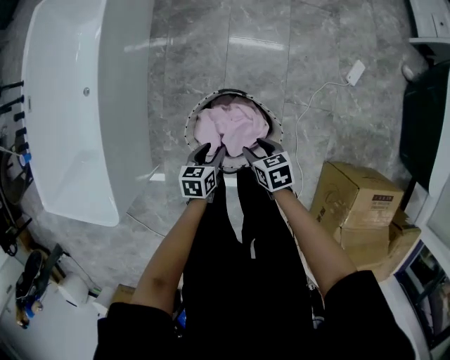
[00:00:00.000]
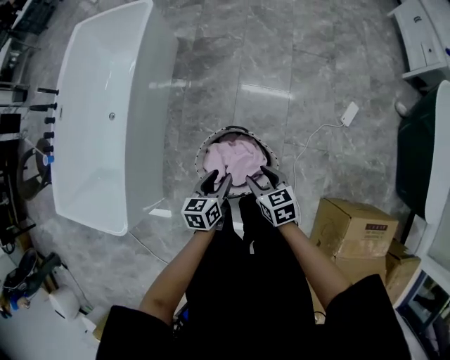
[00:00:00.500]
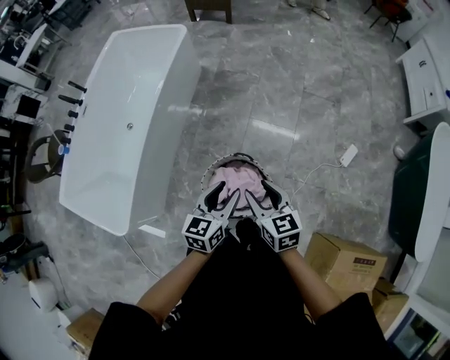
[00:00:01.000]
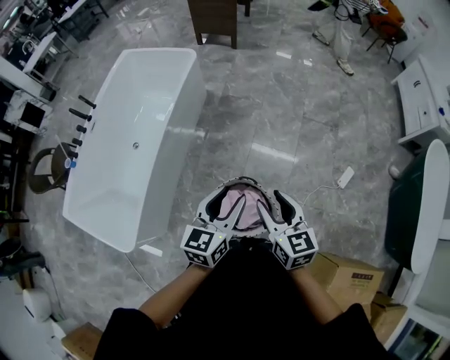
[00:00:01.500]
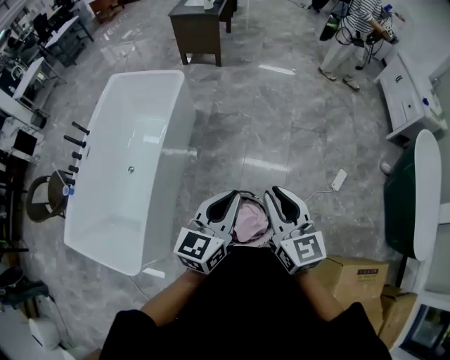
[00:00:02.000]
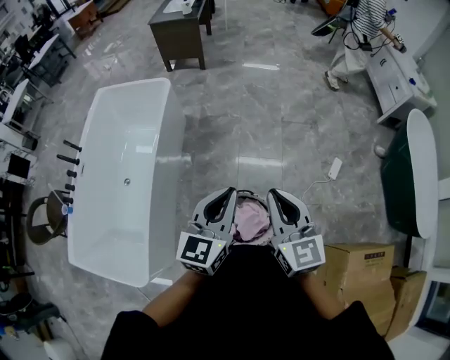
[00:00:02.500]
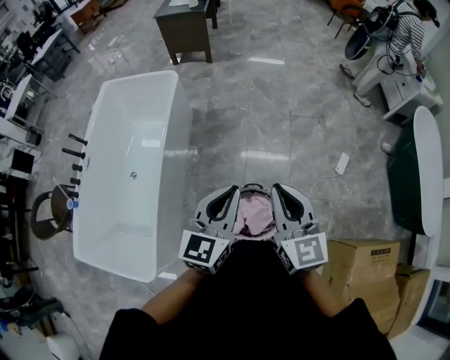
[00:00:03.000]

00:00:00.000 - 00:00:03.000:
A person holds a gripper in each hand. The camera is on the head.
00:00:00.000 - 00:00:01.500: Both grippers travel together upward, about 50 cm. The right gripper tips its fingers upward by about 30 degrees. Meanwhile the left gripper points its fingers about 30 degrees further upward.
00:00:01.500 - 00:00:03.000: Both grippers travel together upward and to the left, approximately 10 cm. The left gripper closes up; the right gripper rotates roughly 20 degrees, and closes.

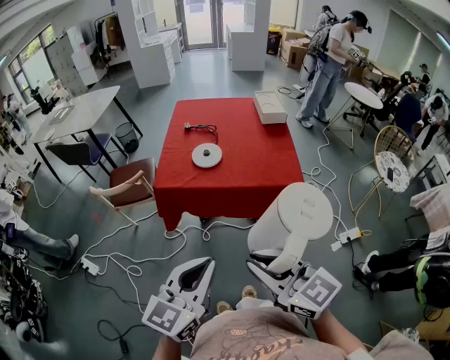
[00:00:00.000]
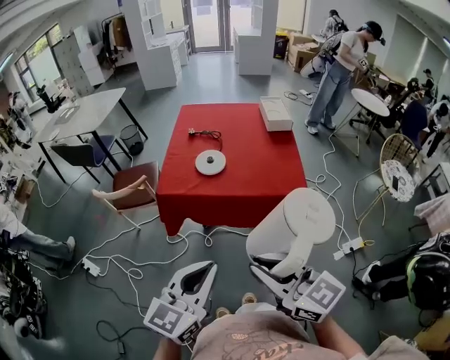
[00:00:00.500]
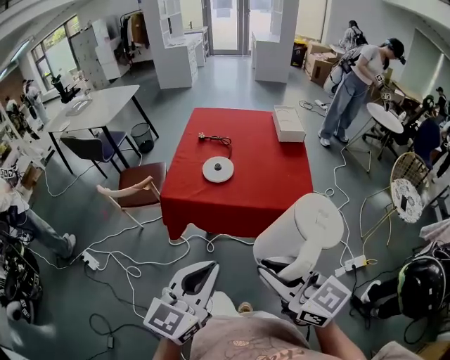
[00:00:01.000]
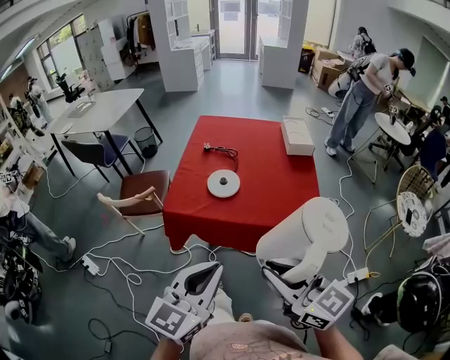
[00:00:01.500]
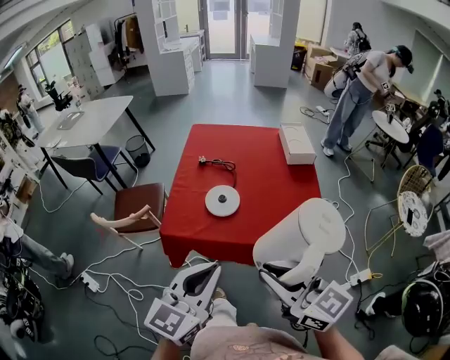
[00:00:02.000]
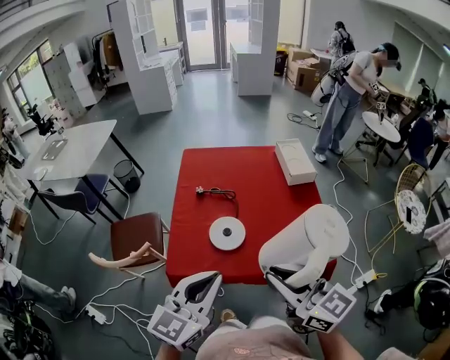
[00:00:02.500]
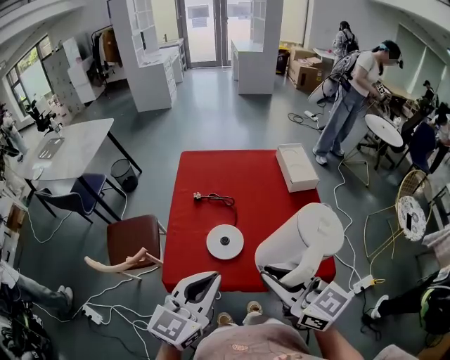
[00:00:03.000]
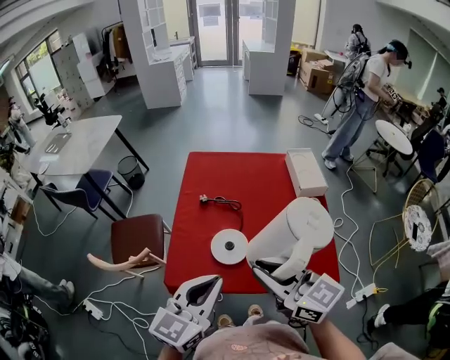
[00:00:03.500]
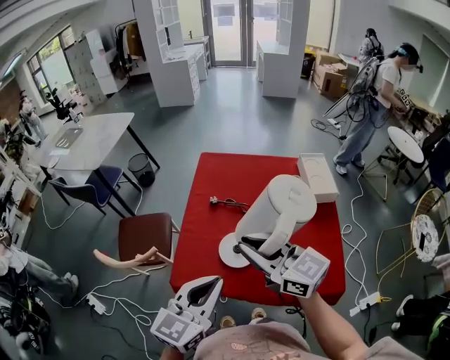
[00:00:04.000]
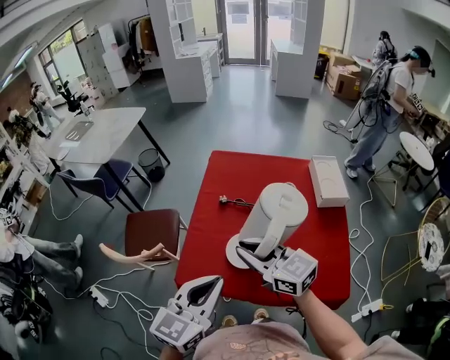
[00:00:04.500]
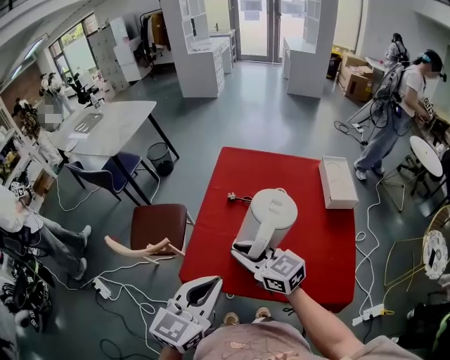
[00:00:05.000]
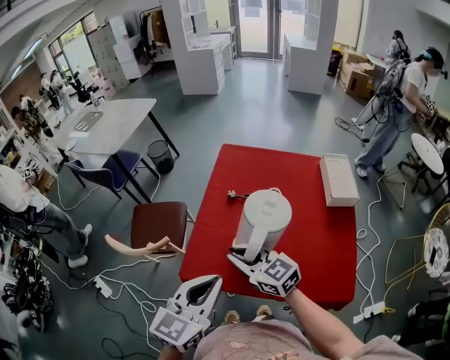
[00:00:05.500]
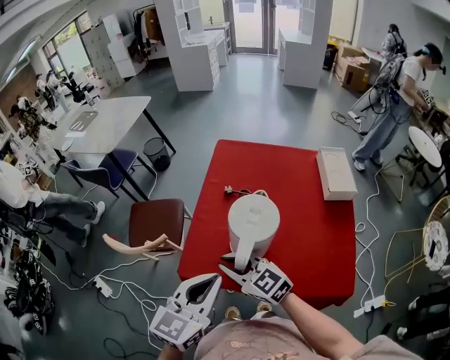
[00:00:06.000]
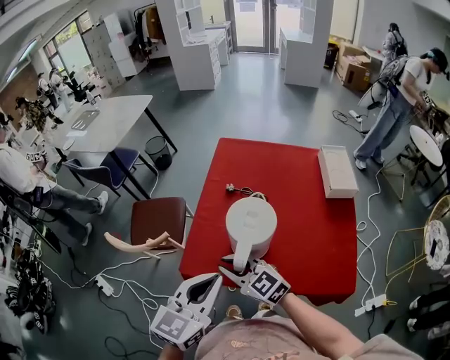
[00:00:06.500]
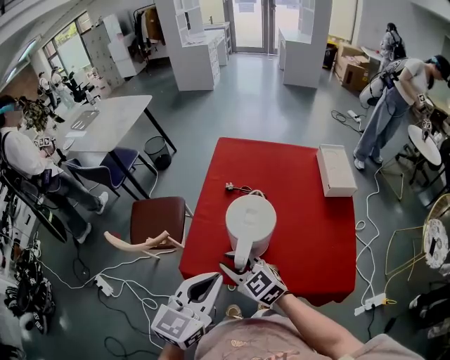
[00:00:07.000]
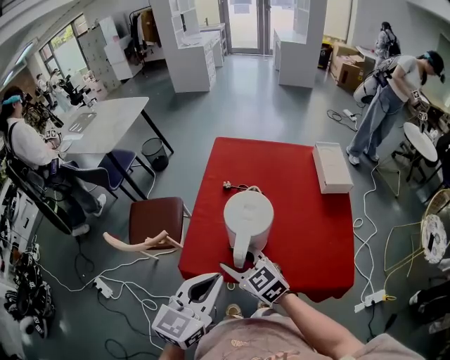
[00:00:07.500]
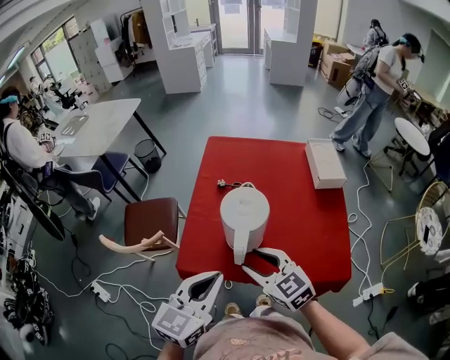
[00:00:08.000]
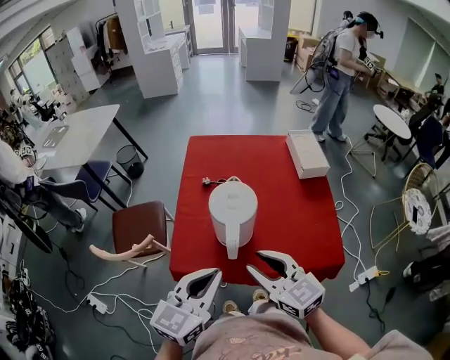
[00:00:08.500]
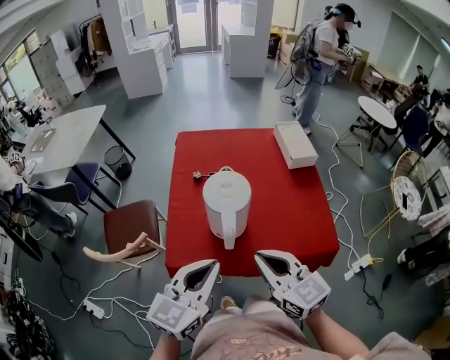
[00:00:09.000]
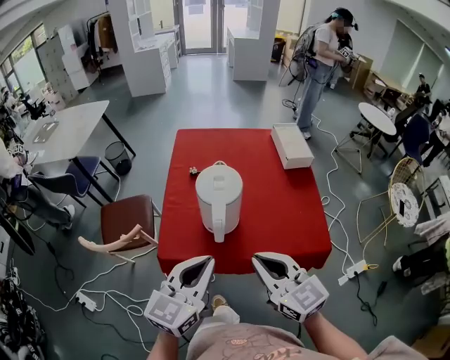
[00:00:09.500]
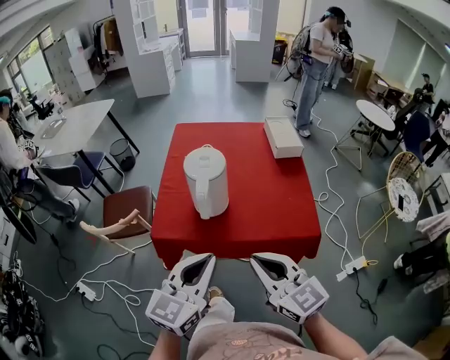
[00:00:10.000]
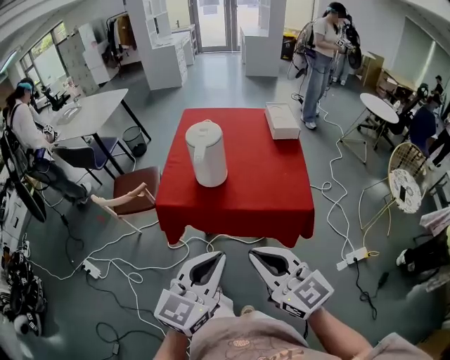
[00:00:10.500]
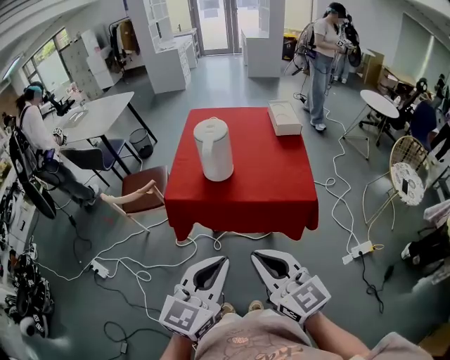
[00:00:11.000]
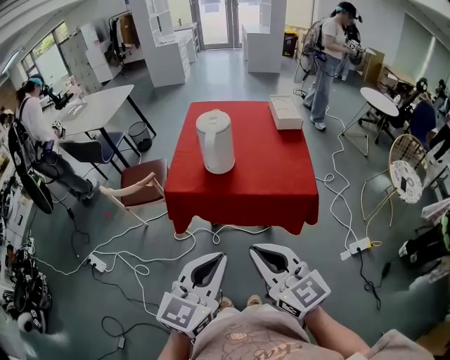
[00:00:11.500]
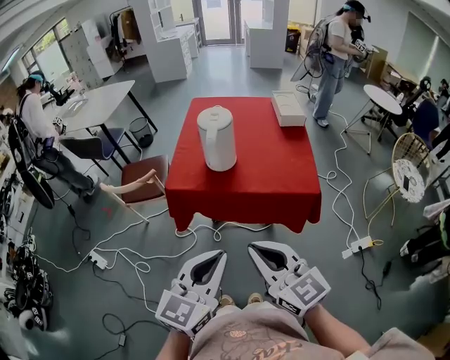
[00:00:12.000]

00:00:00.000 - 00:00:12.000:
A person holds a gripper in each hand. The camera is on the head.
00:00:00.000 - 00:00:02.000: The two grippers go some 20 cm forward.
00:00:02.000 - 00:00:04.000: The left gripper moves forward, roughly 20 cm, while the right gripper moves forward, approximately 25 cm.
00:00:04.000 - 00:00:06.000: The right gripper shifts some 20 cm downward and to the left, and rotates approximately 20 degrees.
00:00:06.000 - 00:00:08.000: The right gripper moves to the right, roughly 10 cm, and opens.
00:00:08.000 - 00:00:10.000: The left gripper heads backward and to the right, covering approximately 15 cm. Meanwhile the right gripper moves backward, to the right and upward, roughly 20 cm, and closes up.
00:00:10.000 - 00:00:12.000: The two grippers go about 15 cm backward.

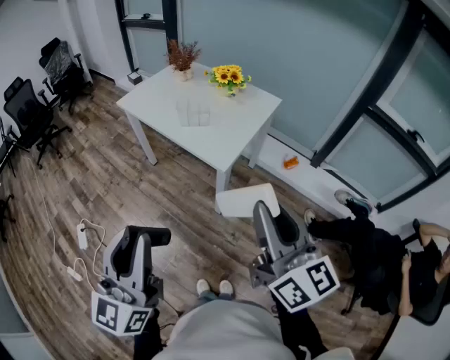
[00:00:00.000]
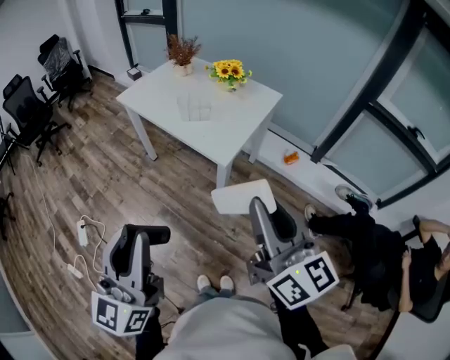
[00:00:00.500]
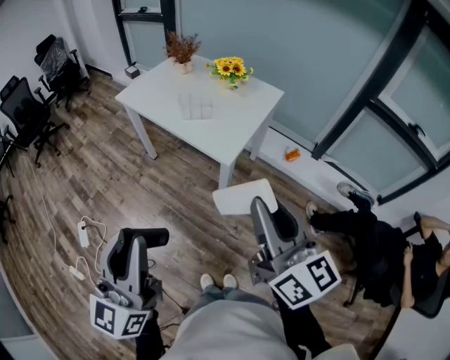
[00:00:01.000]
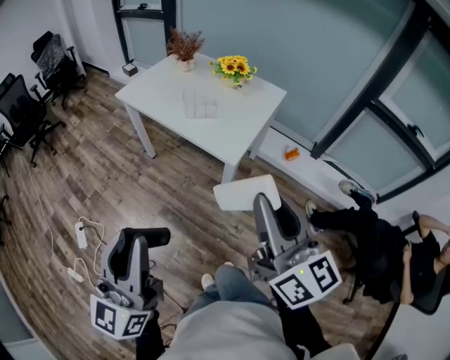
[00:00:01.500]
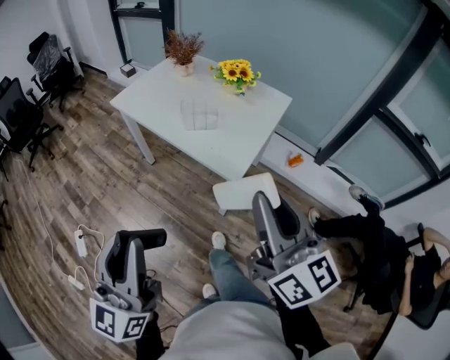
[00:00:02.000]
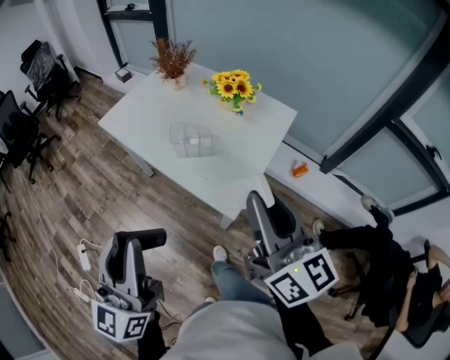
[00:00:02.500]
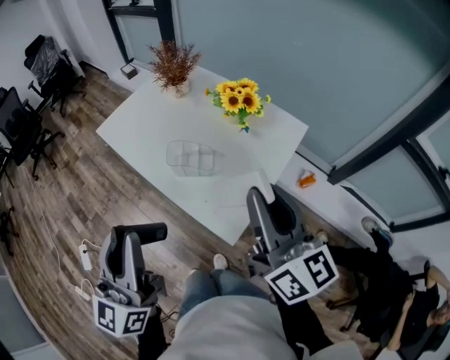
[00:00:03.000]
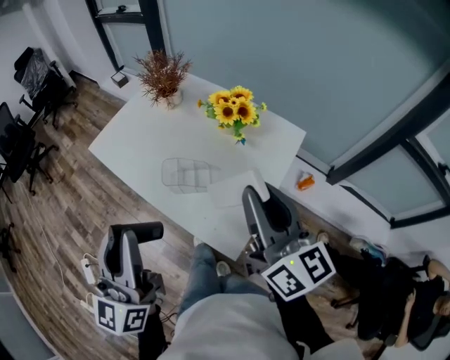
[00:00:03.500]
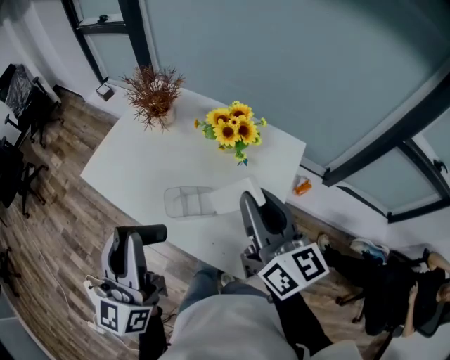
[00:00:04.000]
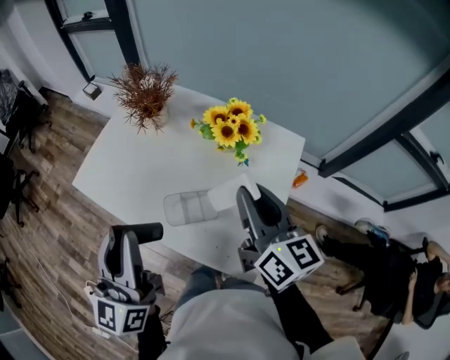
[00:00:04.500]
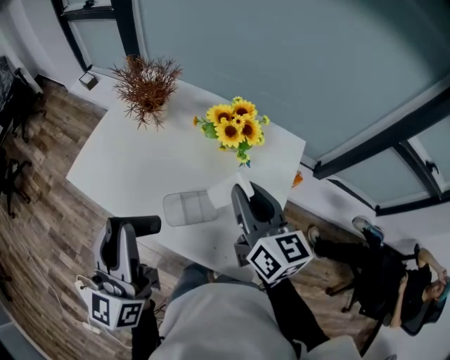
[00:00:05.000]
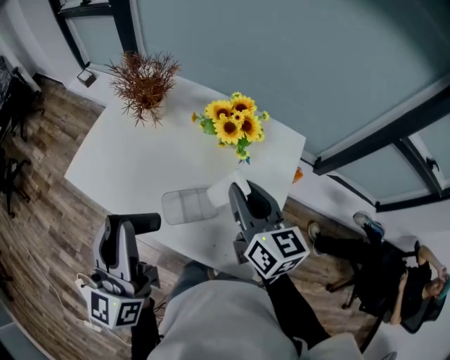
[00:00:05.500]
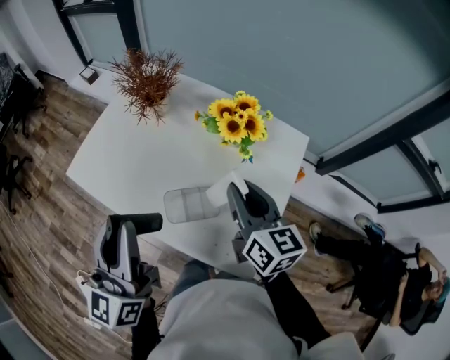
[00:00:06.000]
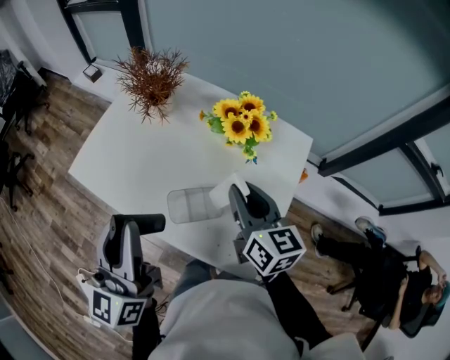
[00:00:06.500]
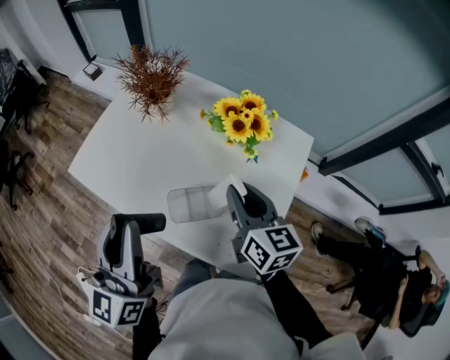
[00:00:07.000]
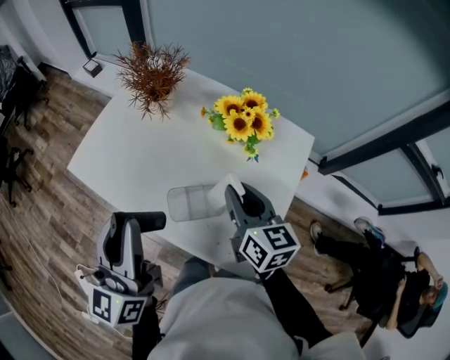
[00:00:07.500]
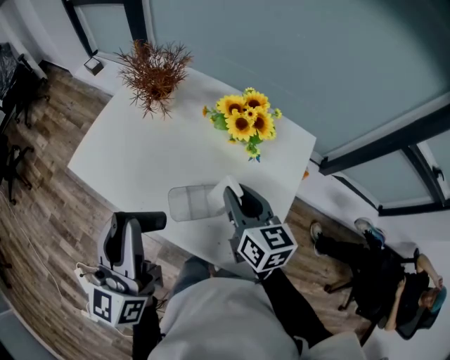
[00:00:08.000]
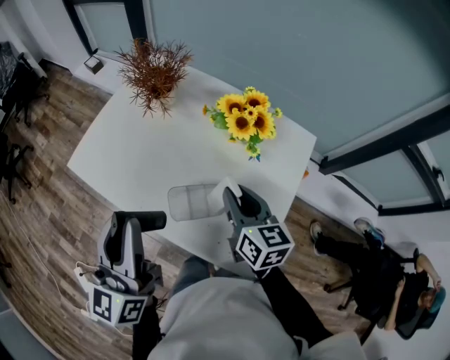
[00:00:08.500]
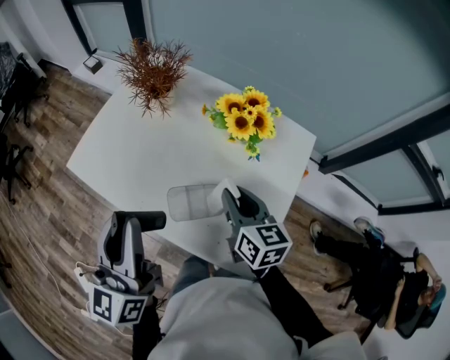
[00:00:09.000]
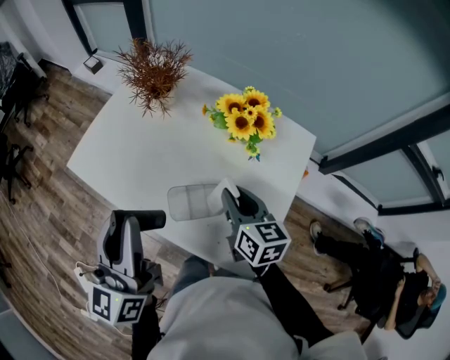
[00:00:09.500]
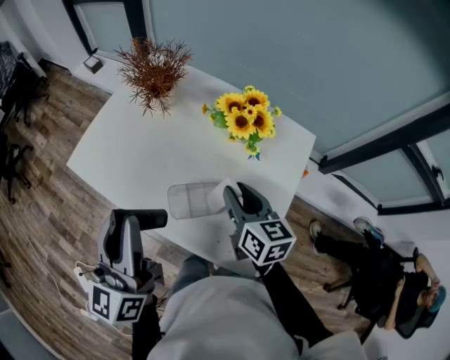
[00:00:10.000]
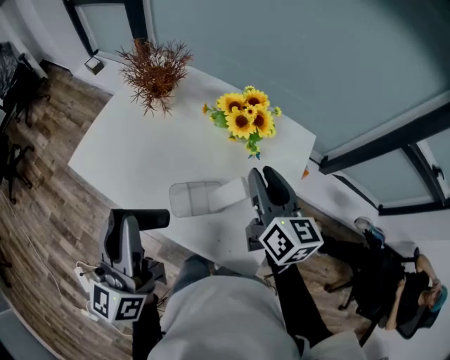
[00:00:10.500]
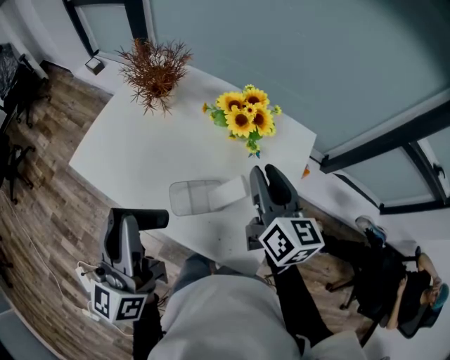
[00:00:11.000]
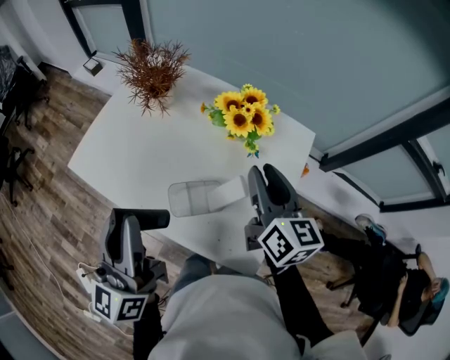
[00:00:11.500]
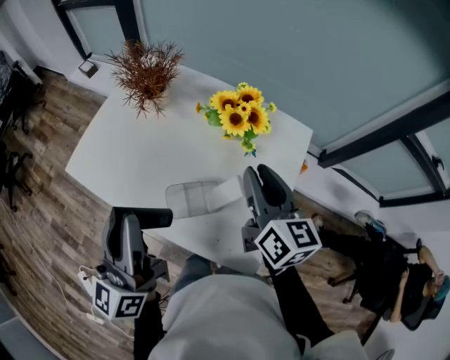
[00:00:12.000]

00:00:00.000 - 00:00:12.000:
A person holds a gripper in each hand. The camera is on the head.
00:00:00.000 - 00:00:02.000: The grippers both shift forward and to the left by approximately 15 cm.
00:00:02.000 - 00:00:04.000: The two grippers travel together, forward, roughly 40 cm.
00:00:04.000 - 00:00:06.000: The right gripper shifts about 15 cm downward and forward. The left gripper is displaced forward by approximately 5 cm.
00:00:06.000 - 00:00:08.000: The right gripper moves roughly 5 cm.
00:00:08.000 - 00:00:10.000: The grippers move only a little.
00:00:10.000 - 00:00:12.000: The right gripper is displaced upward by some 10 cm.
